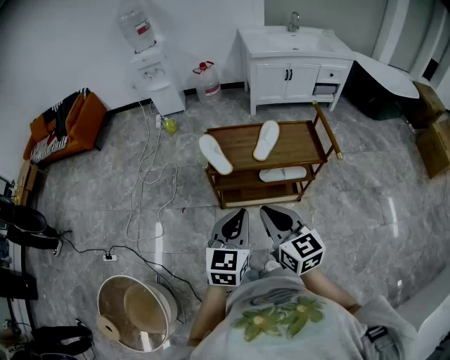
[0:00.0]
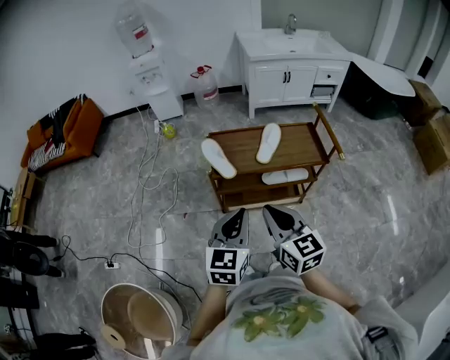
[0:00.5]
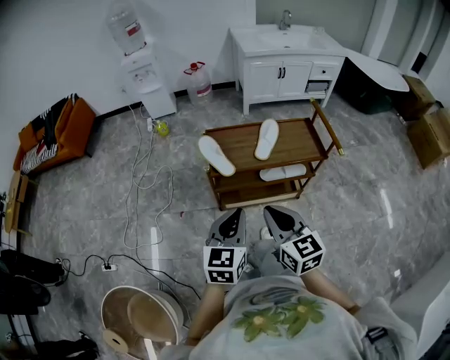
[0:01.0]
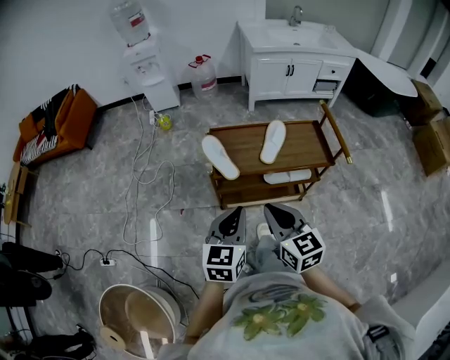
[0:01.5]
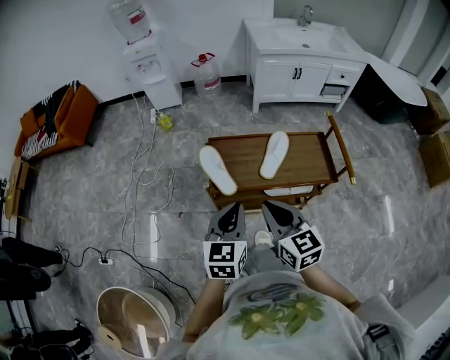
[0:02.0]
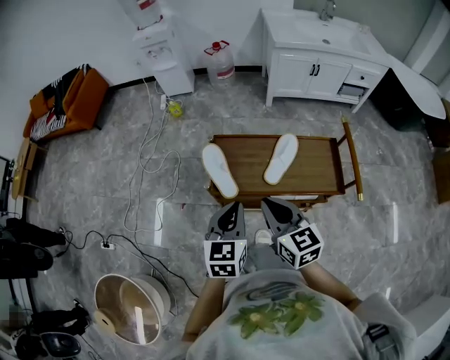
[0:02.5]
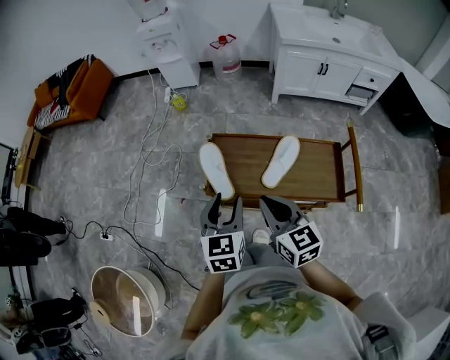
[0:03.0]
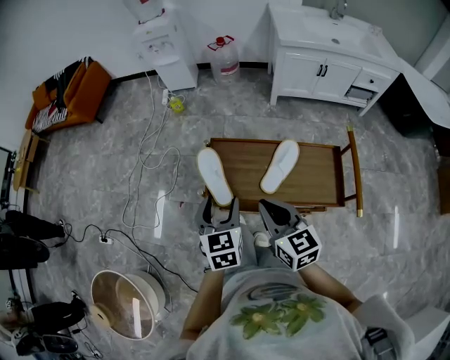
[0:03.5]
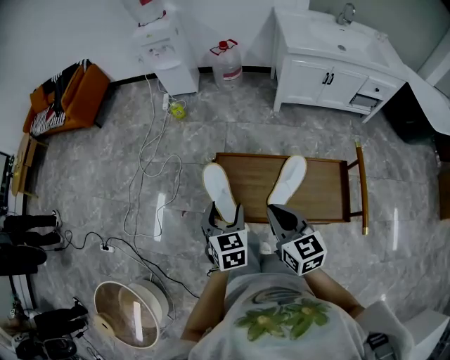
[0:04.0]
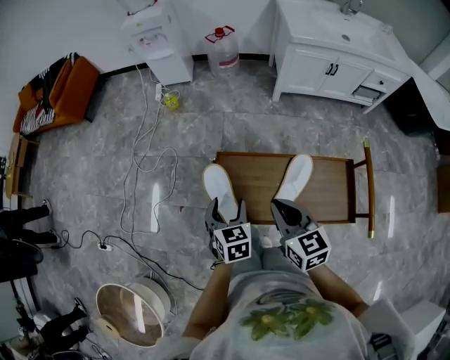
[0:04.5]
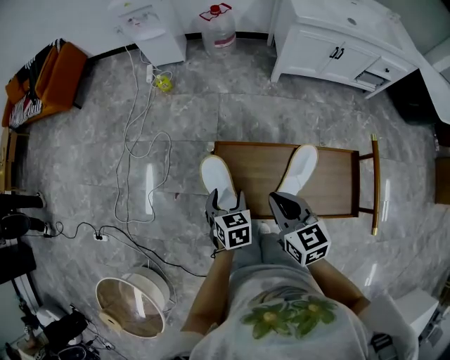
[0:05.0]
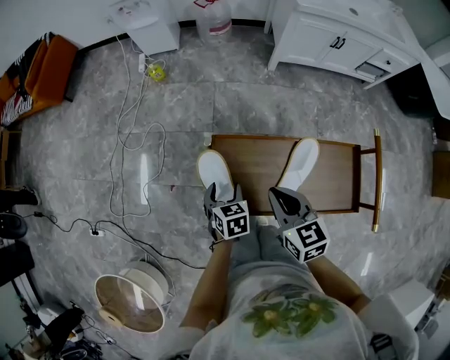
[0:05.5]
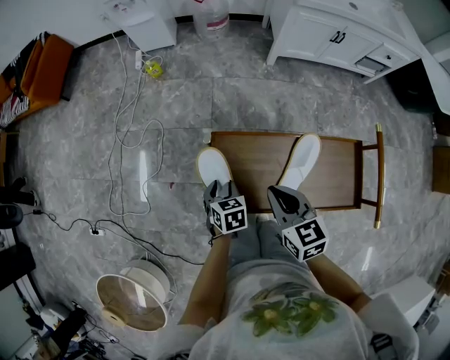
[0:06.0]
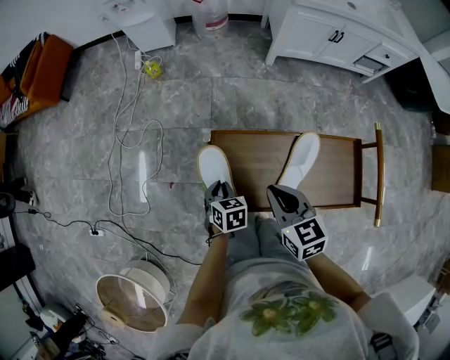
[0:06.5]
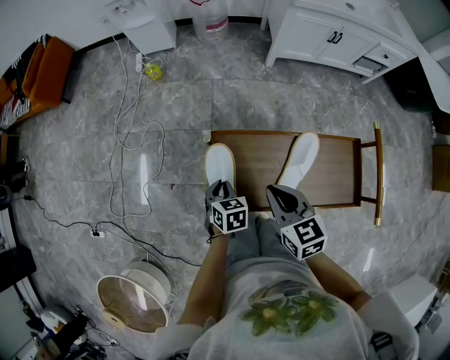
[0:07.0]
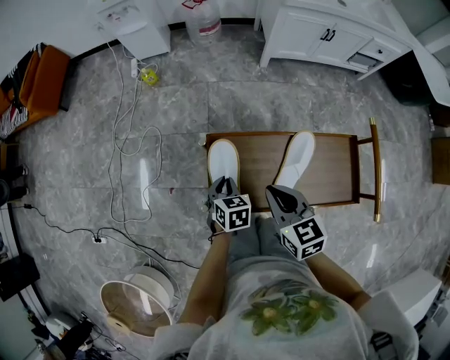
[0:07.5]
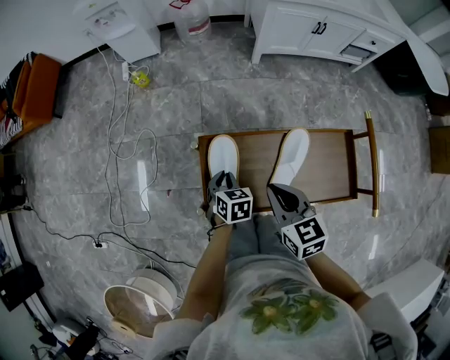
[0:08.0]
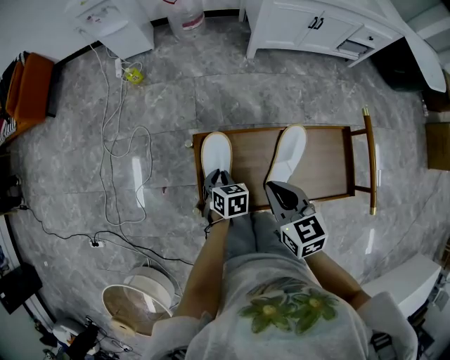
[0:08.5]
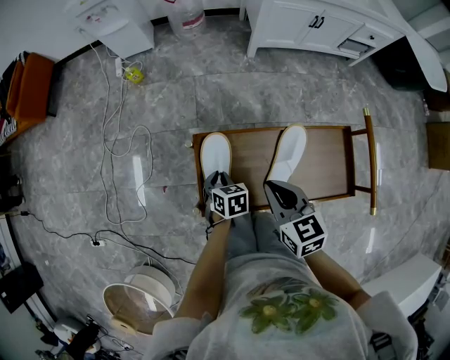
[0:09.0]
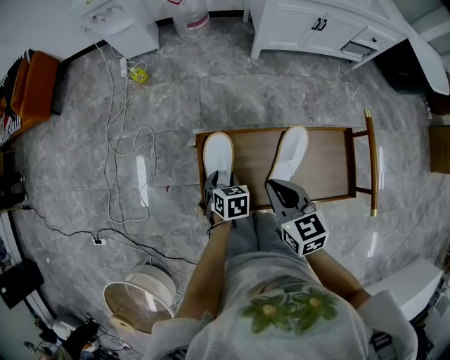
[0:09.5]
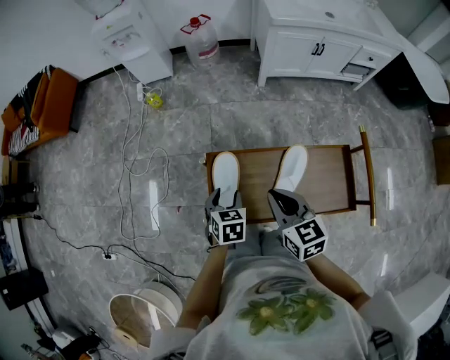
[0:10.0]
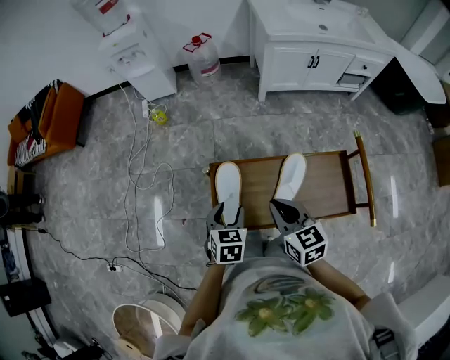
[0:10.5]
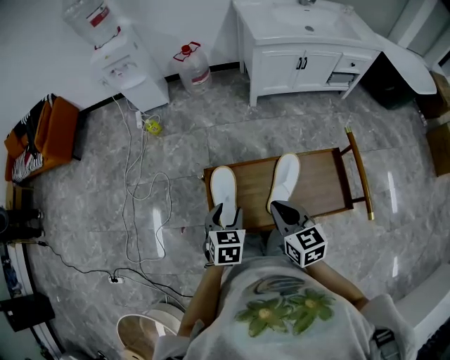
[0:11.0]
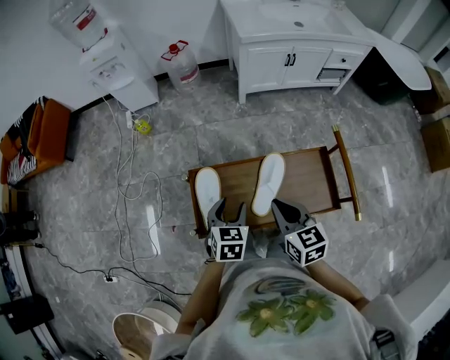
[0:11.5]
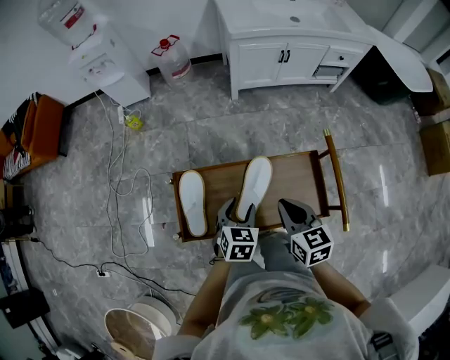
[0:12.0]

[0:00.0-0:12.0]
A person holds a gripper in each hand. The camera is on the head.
0:00.0 to 0:02.0: Both grippers travel together forward, about 15 cm.
0:02.0 to 0:04.0: The left gripper shifts roughly 20 cm forward and downward, swivels some 30 degrees, and opens. The right gripper travels forward and to the right by roughly 15 cm.
0:04.0 to 0:06.0: The left gripper travels downward by approximately 20 cm, and changes its angle by some 20 degrees. The right gripper is displaced downward and forward by about 15 cm.
0:06.0 to 0:08.0: The left gripper moves to the right, some 5 cm, and closes up.
0:08.0 to 0:10.0: The left gripper travels upward by about 5 cm, and opens up.
0:10.0 to 0:12.0: Both grippers travel together to the right, approximately 20 cm.

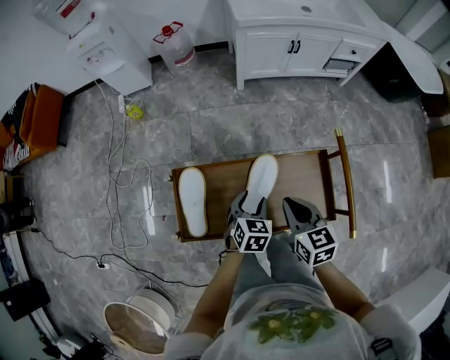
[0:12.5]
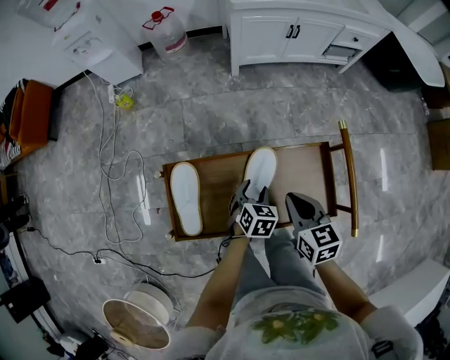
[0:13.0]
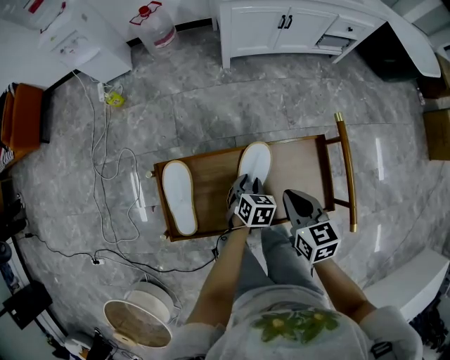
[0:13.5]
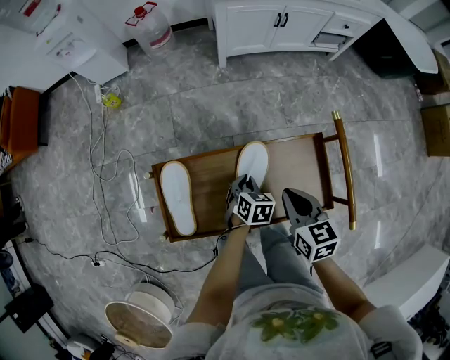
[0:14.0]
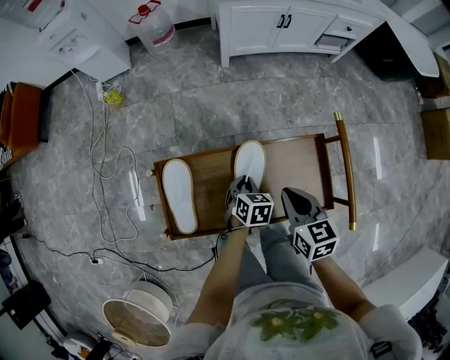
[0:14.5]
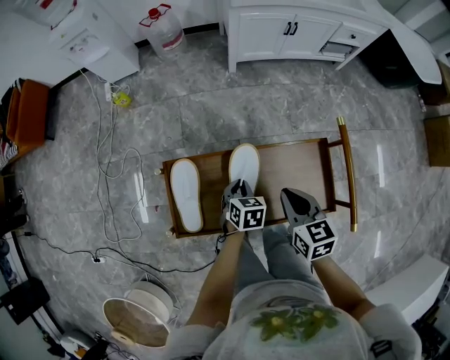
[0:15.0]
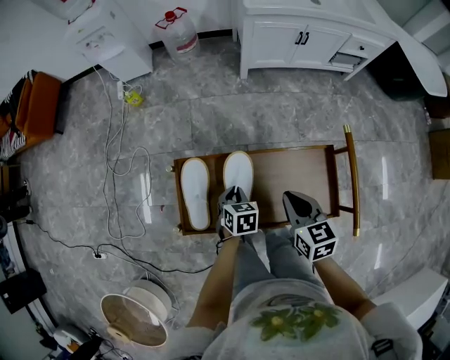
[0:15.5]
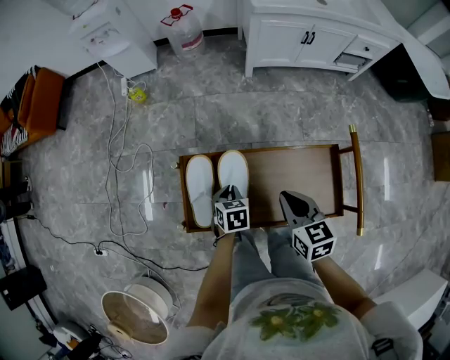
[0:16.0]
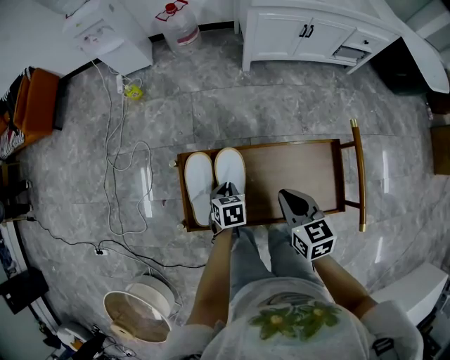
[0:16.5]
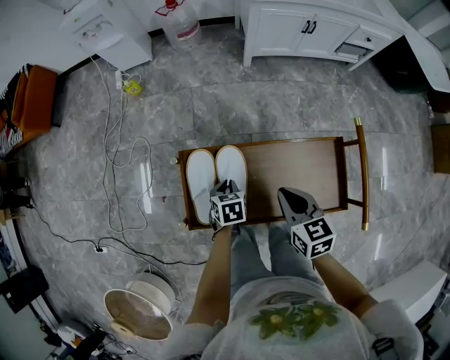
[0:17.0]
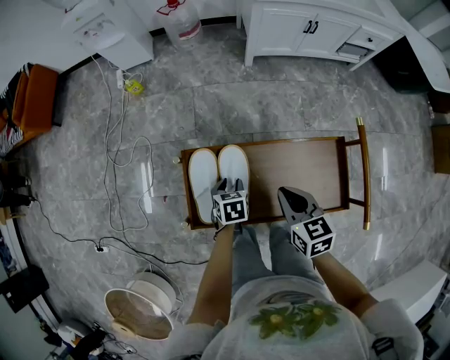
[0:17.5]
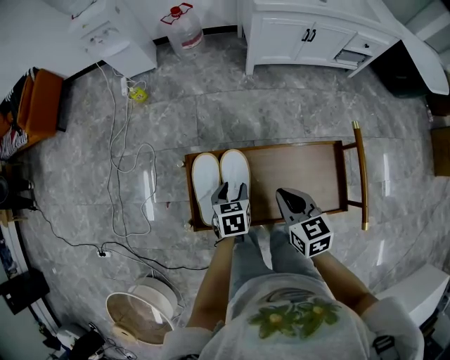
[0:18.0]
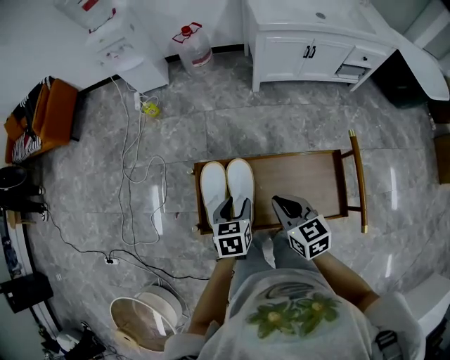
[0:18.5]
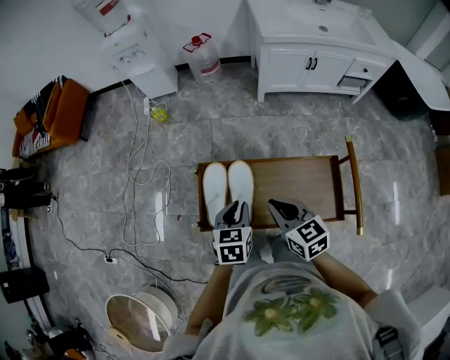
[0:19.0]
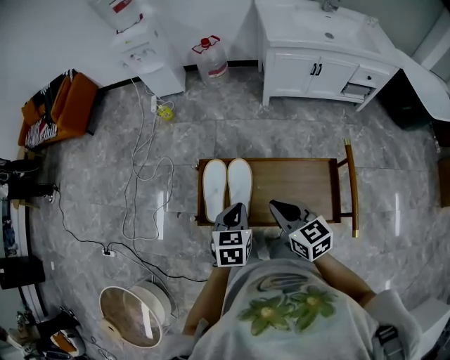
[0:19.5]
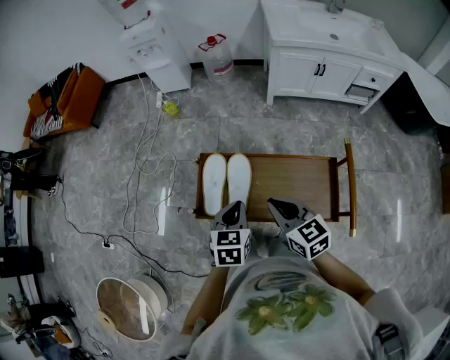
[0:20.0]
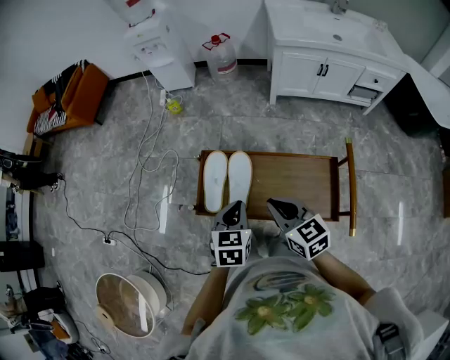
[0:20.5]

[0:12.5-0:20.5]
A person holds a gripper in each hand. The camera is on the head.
0:12.5 to 0:14.5: The left gripper shifts some 10 cm downward, and closes its fingers.
0:14.5 to 0:16.5: The left gripper goes about 15 cm to the left. Meanwhile the right gripper is displaced to the left by approximately 5 cm.
0:16.5 to 0:18.5: The left gripper shifts roughly 15 cm upward, and opens its fingers. The right gripper changes place by some 5 cm.
0:18.5 to 0:20.5: The left gripper shifts about 10 cm upward and backward, and closes up, while the right gripper heads backward and upward, covering some 10 cm.

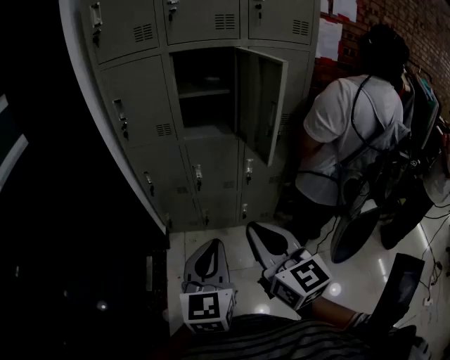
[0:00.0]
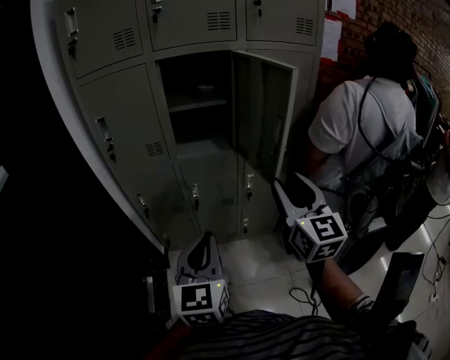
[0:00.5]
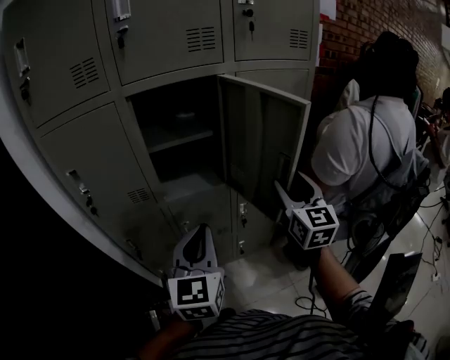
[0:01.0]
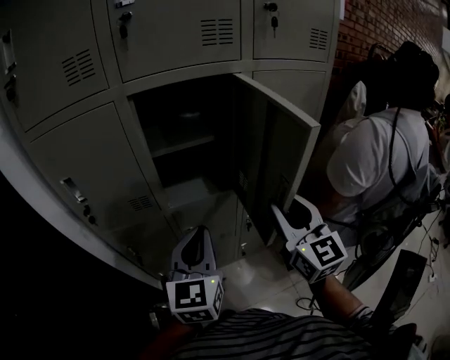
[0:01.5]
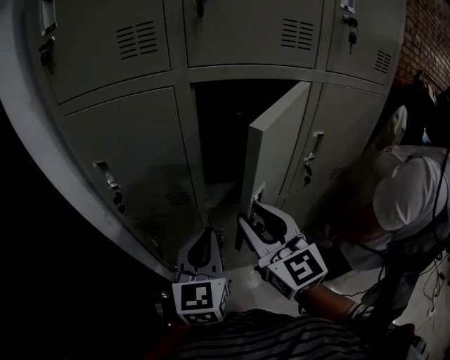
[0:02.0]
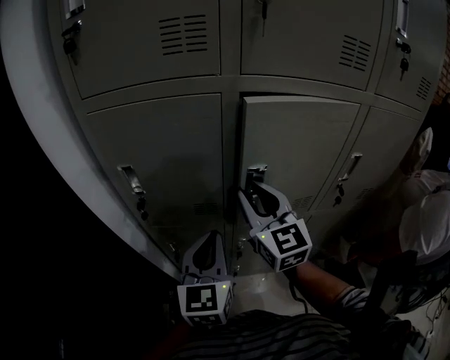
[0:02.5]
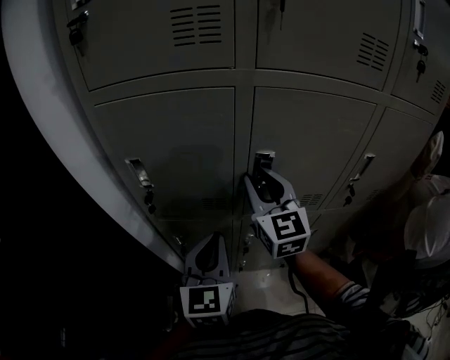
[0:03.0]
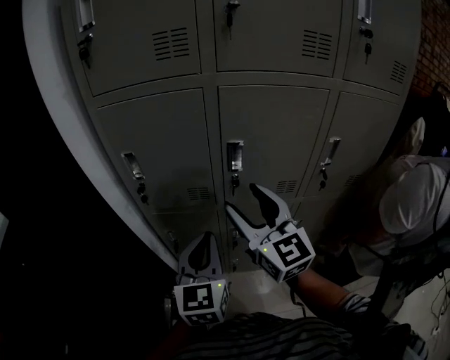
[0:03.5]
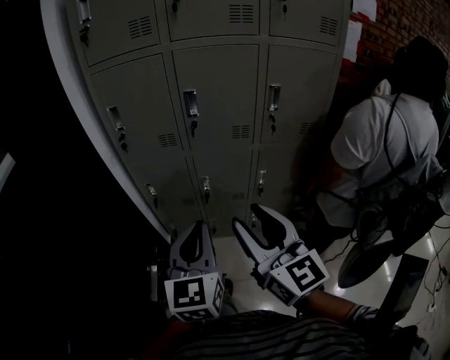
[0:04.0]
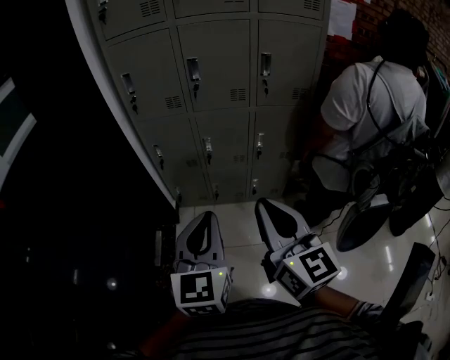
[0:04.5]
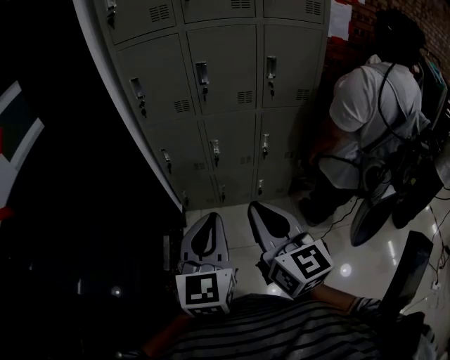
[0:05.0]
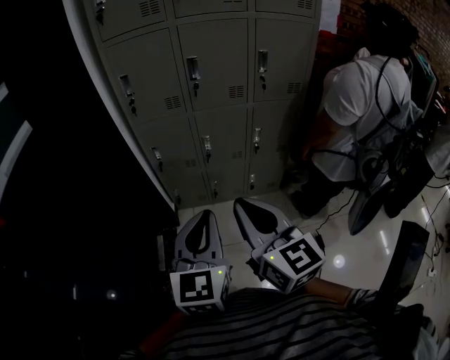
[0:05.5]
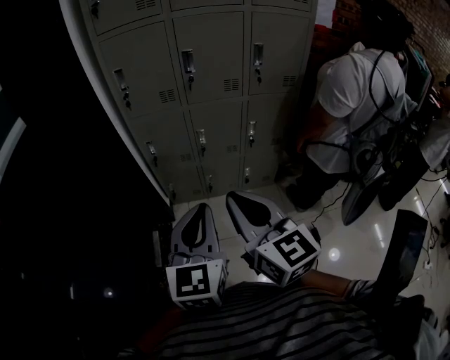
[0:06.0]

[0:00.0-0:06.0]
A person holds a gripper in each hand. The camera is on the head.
0:00.0 to 0:02.0: The pair of grippers is taken forward, roughly 40 cm. The right gripper opens.
0:02.0 to 0:04.0: Both grippers travel together backward, roughly 25 cm.
0:04.0 to 0:06.0: The right gripper shifts about 20 cm backward and to the left, and closes up. The left gripper shifts roughly 15 cm backward.

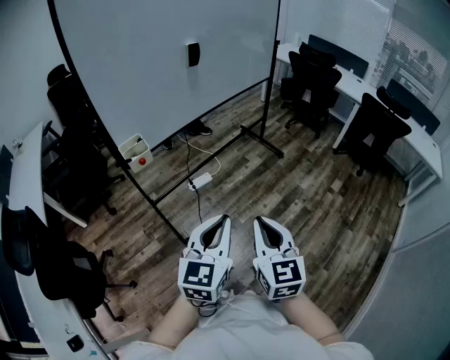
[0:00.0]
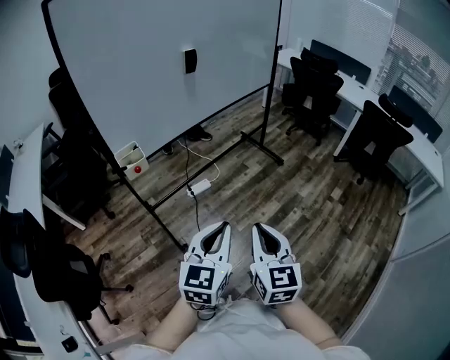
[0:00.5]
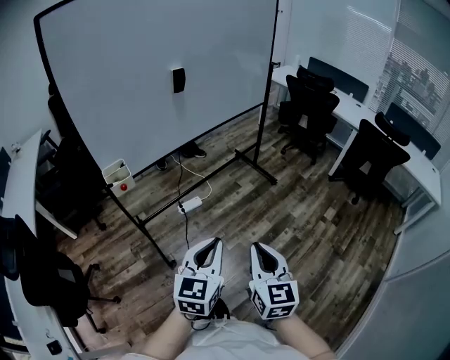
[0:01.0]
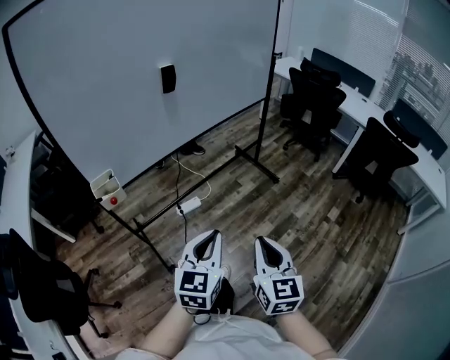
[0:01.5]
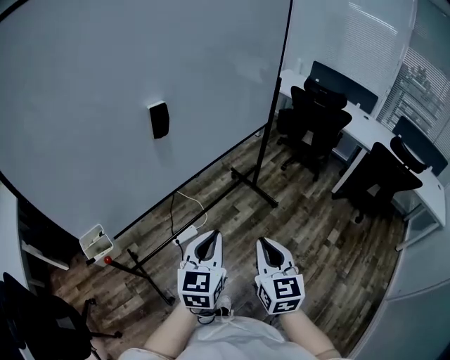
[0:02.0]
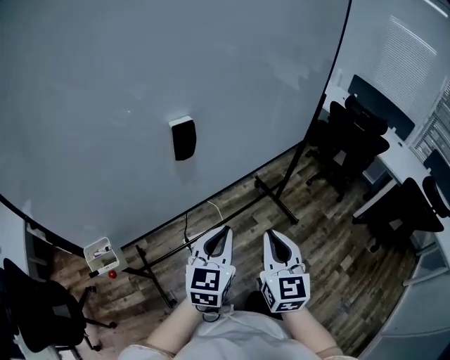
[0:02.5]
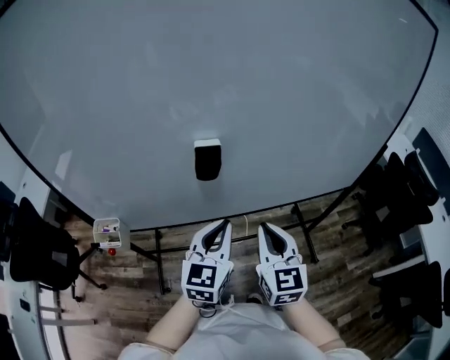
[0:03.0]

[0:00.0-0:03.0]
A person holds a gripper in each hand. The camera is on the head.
0:00.0 to 0:01.5: The left gripper heads forward, covering roughly 15 cm; the right gripper moves forward and to the right, some 20 cm.
0:01.5 to 0:03.0: The pair of grippers is taken about 50 cm. The right gripper turns by about 30 degrees. Meanwhile the left gripper swivels roughly 30 degrees.
